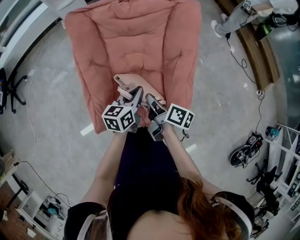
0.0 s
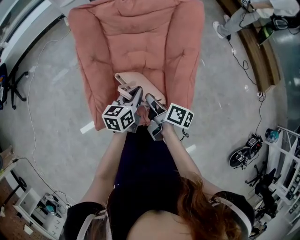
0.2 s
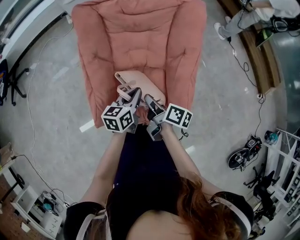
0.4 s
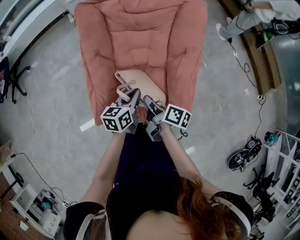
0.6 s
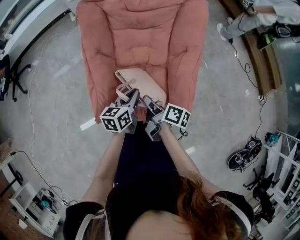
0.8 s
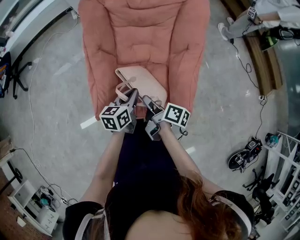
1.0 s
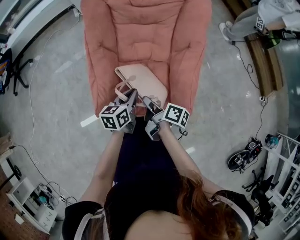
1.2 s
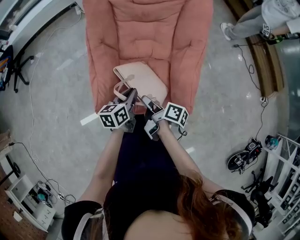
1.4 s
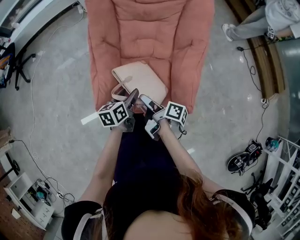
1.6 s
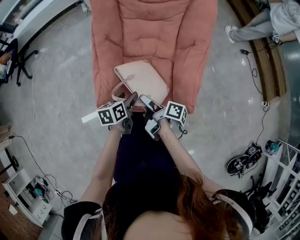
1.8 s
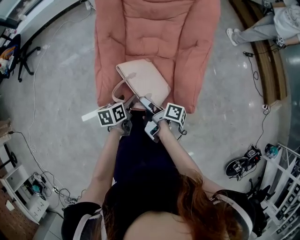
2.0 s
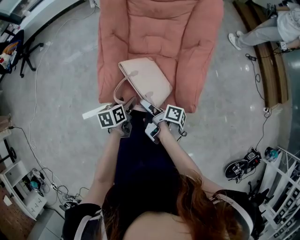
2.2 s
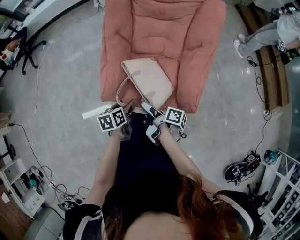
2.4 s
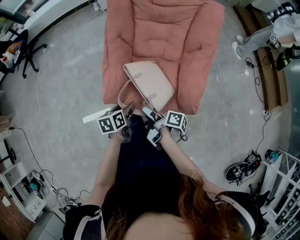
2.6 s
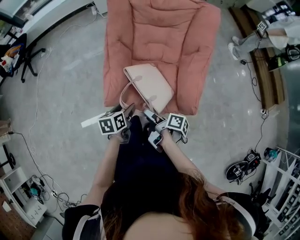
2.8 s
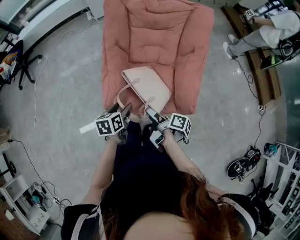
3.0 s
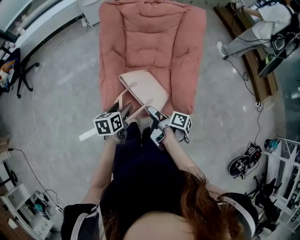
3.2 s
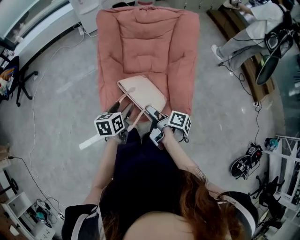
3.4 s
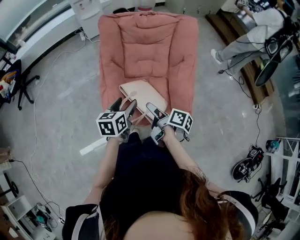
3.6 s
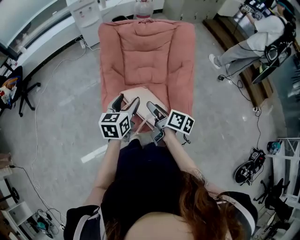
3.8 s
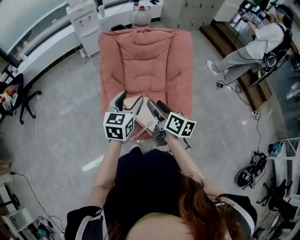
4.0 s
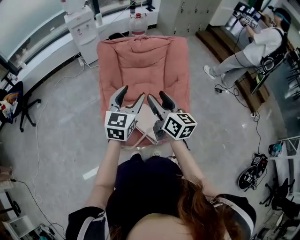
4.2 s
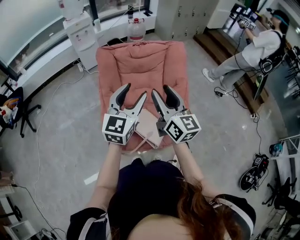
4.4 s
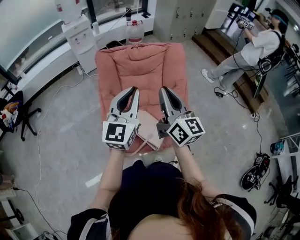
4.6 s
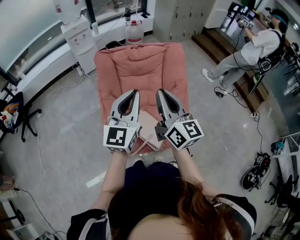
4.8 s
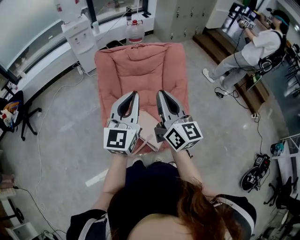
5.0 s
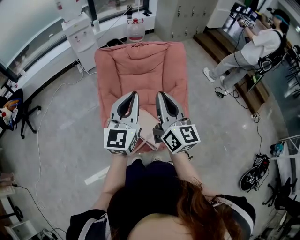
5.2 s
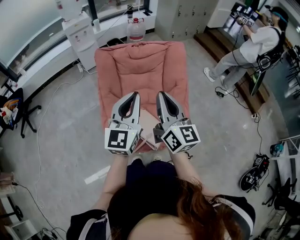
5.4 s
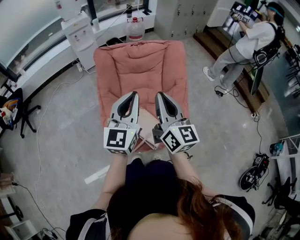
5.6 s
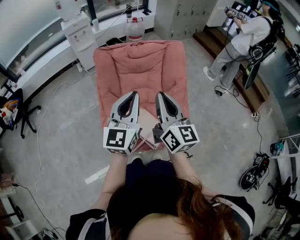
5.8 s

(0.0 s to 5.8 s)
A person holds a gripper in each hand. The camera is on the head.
0.0 s - 1.4 s: The right gripper travels backward by roughly 10 cm. Meanwhile the left gripper heads backward and to the left, covering roughly 10 cm.
1.4 s - 2.8 s: The right gripper goes roughly 10 cm backward and to the left, and opens. Meanwhile the left gripper travels to the left and backward by some 15 cm, and opens its fingers.
2.8 s - 4.4 s: The left gripper heads upward, covering roughly 35 cm, and points its fingers about 50 degrees further upward. Meanwhile the right gripper moves upward and forward, roughly 35 cm, and rotates around the line of its fingers by about 80 degrees, counterclockwise from behind.
4.4 s - 5.8 s: The right gripper closes its fingers, while the left gripper closes up.

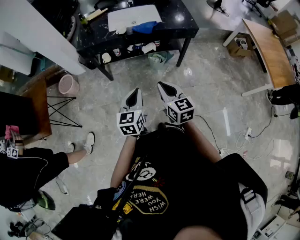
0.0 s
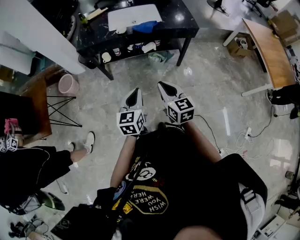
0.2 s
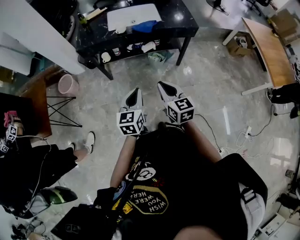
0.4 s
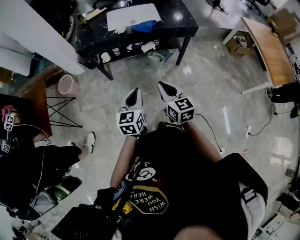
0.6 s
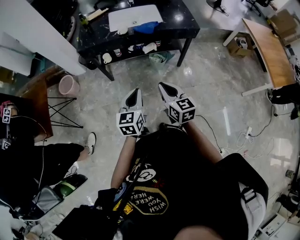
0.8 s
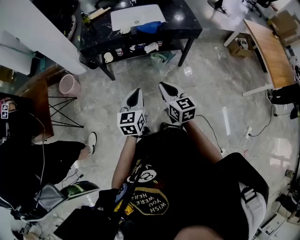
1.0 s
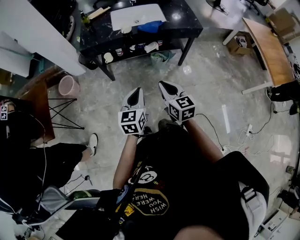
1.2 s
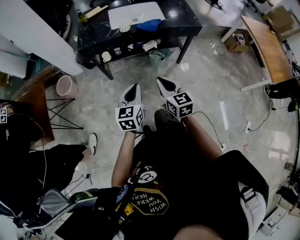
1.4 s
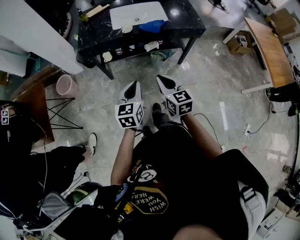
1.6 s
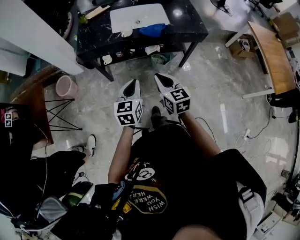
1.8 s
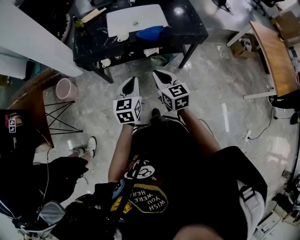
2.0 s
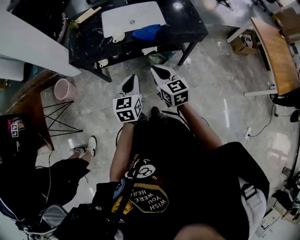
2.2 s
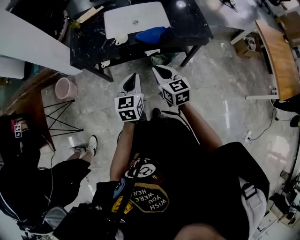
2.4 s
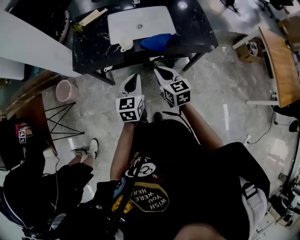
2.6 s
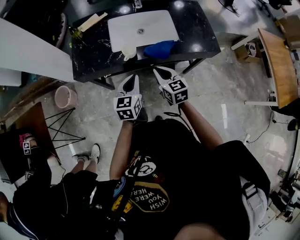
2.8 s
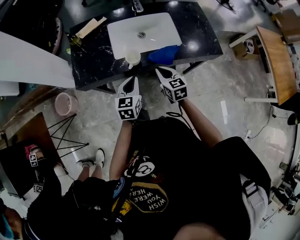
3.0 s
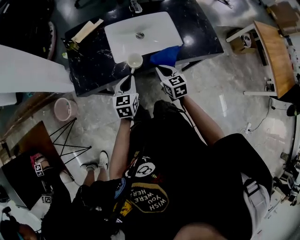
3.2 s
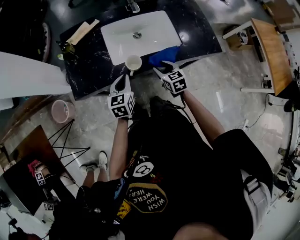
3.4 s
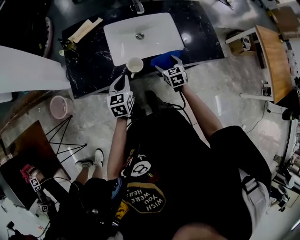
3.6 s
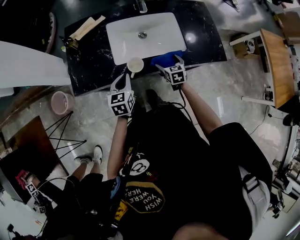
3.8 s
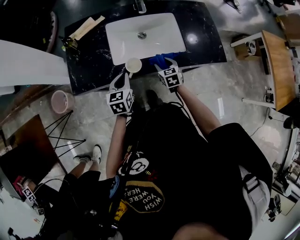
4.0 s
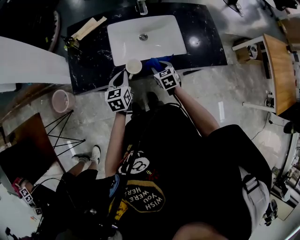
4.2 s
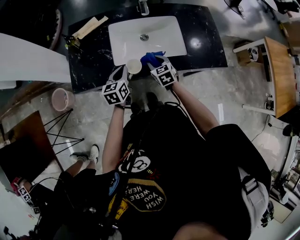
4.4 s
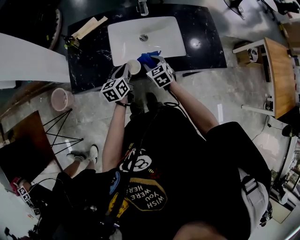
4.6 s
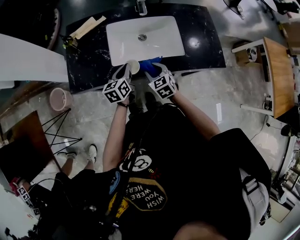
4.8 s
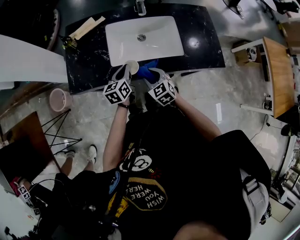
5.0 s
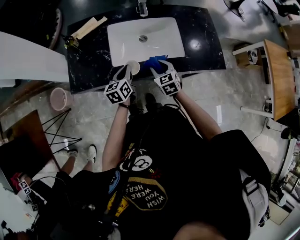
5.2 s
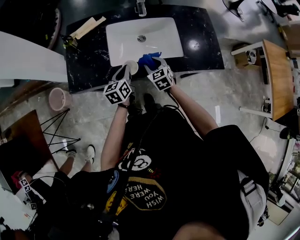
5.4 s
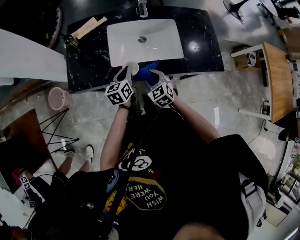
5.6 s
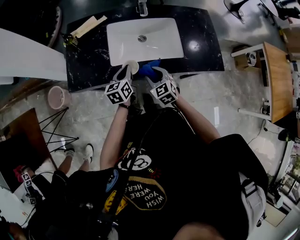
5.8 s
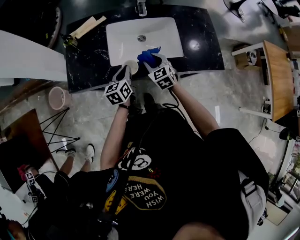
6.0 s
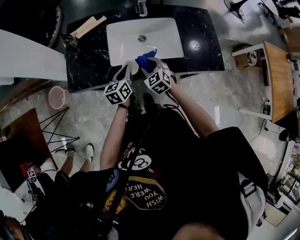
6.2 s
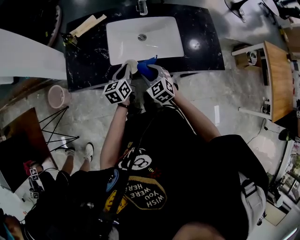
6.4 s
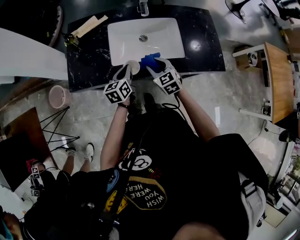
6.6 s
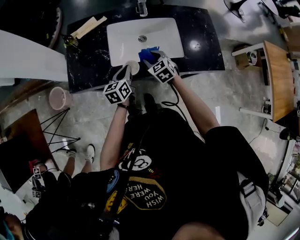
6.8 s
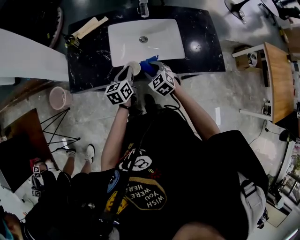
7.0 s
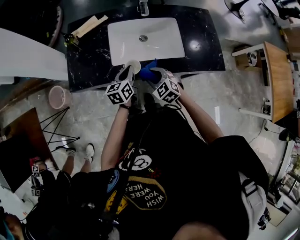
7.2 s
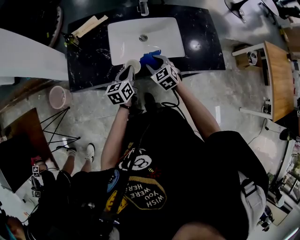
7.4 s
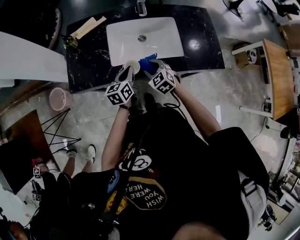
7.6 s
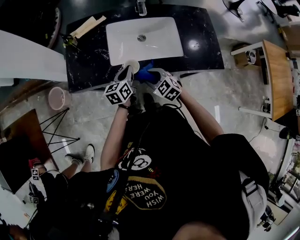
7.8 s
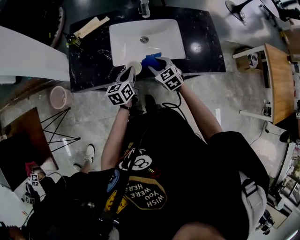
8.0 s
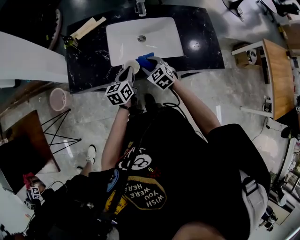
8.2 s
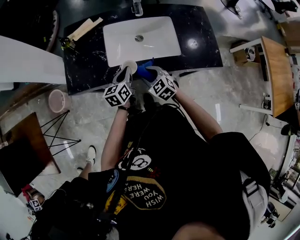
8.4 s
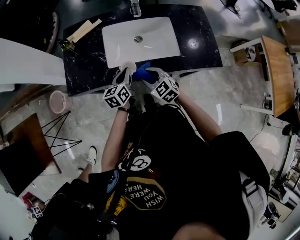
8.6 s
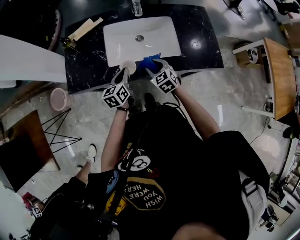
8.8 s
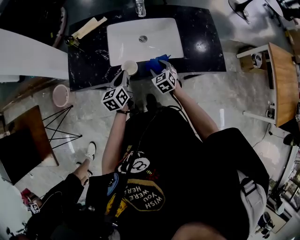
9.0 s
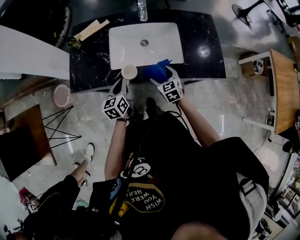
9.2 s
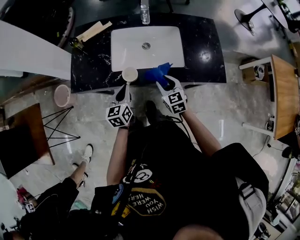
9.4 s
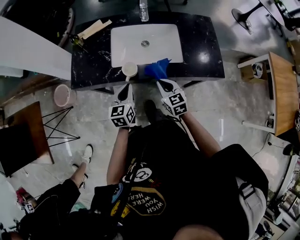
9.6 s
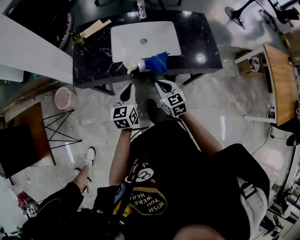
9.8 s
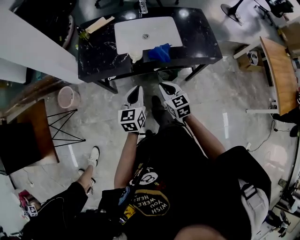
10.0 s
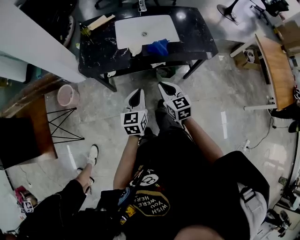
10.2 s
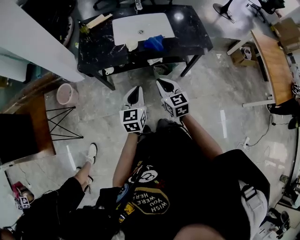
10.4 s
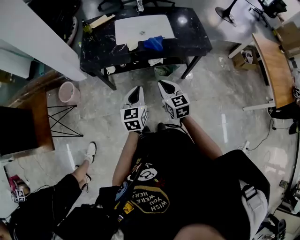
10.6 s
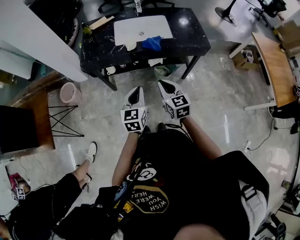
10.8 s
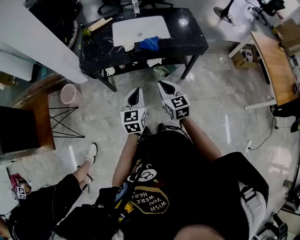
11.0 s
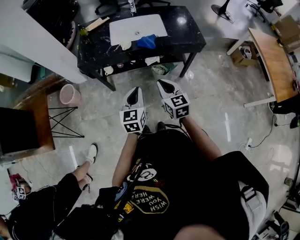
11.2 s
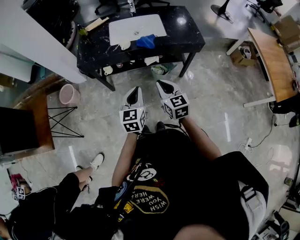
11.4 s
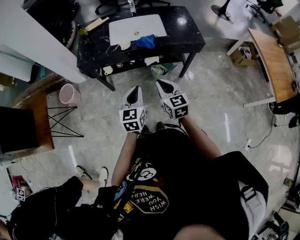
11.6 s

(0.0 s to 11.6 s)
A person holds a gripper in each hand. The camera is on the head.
0.0 s - 1.4 s: The right gripper shifts some 5 cm to the left. Meanwhile the left gripper travels to the left and forward by some 10 cm.
1.4 s - 2.8 s: Both grippers travel together forward, roughly 35 cm.
2.8 s - 4.4 s: Both grippers travel together forward and downward, about 20 cm. The right gripper opens, then closes again.
4.4 s - 5.8 s: The right gripper swings forward and backward, roughly 5 cm each way, with 2 reversals.
5.8 s - 7.2 s: The right gripper swings forward and backward, roughly 10 cm each way, with 3 reversals.
7.2 s - 8.8 s: The right gripper goes forward and backward, approximately 5 cm each way, reversing 4 times.
8.8 s - 10.2 s: The left gripper travels backward by roughly 30 cm, and turns by approximately 20 degrees, while the right gripper travels backward and upward by approximately 30 cm, turns by some 30 degrees, and closes up.
10.2 s - 11.6 s: The grippers both shift backward and to the right by about 10 cm.

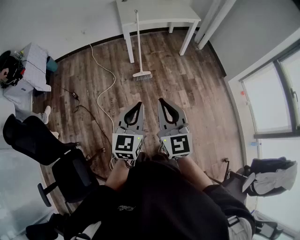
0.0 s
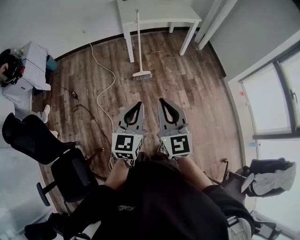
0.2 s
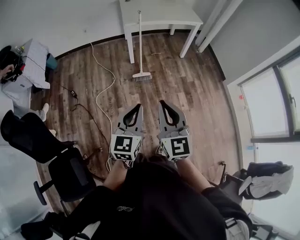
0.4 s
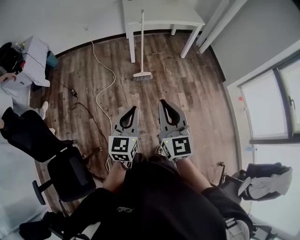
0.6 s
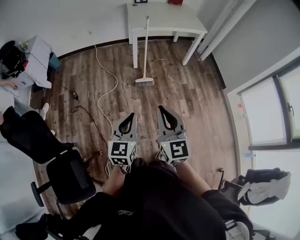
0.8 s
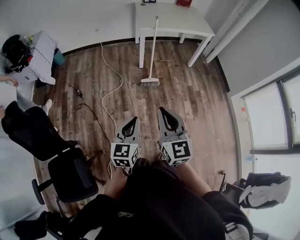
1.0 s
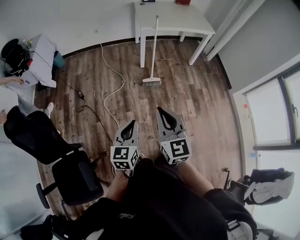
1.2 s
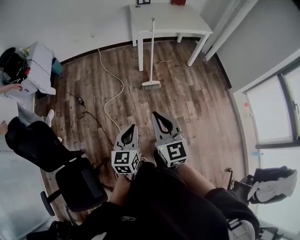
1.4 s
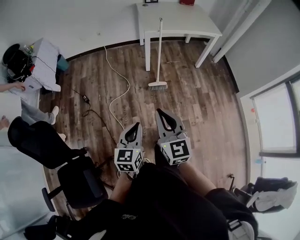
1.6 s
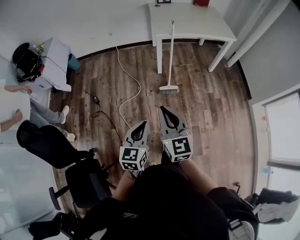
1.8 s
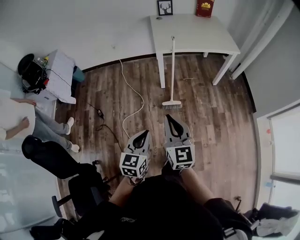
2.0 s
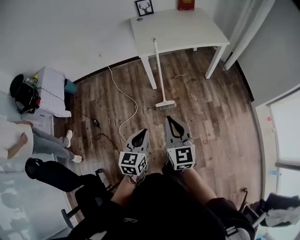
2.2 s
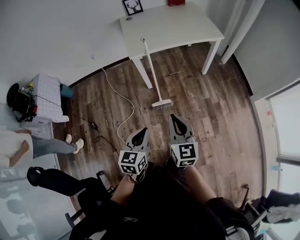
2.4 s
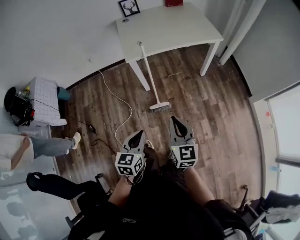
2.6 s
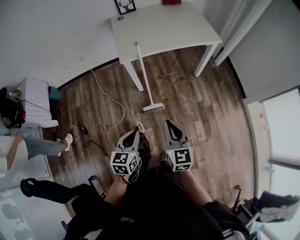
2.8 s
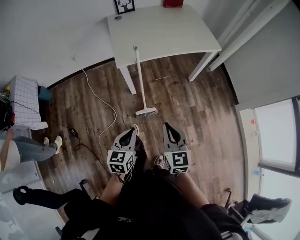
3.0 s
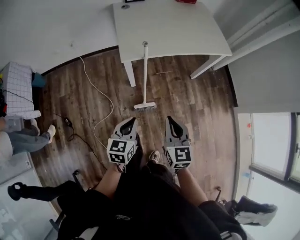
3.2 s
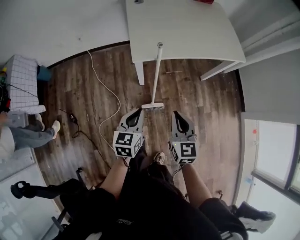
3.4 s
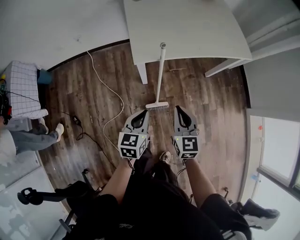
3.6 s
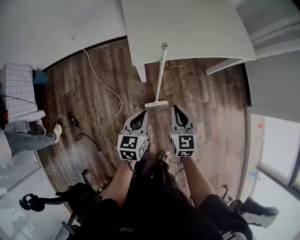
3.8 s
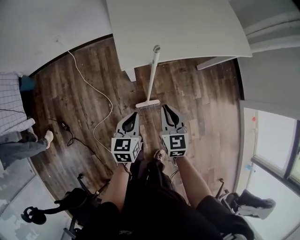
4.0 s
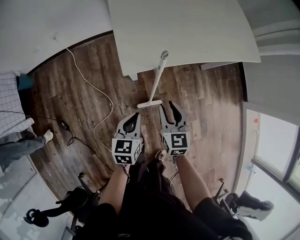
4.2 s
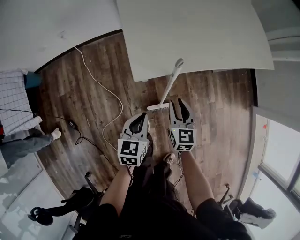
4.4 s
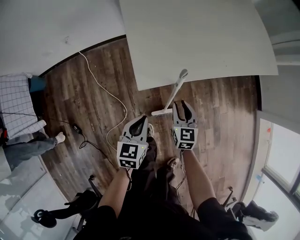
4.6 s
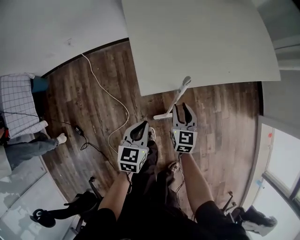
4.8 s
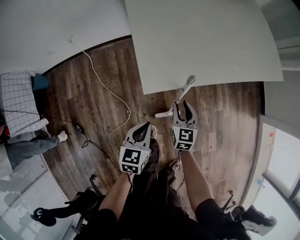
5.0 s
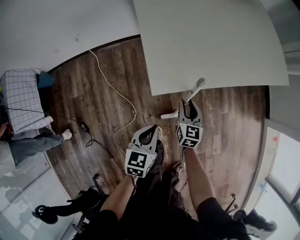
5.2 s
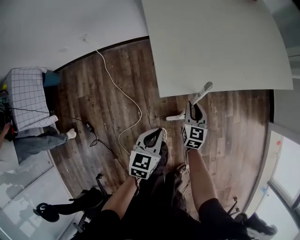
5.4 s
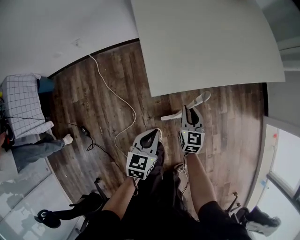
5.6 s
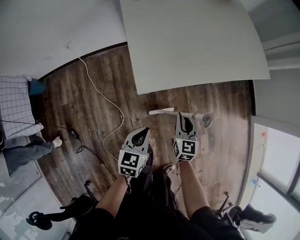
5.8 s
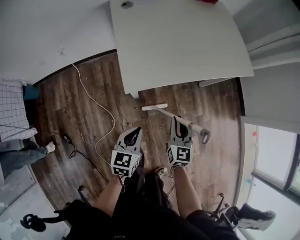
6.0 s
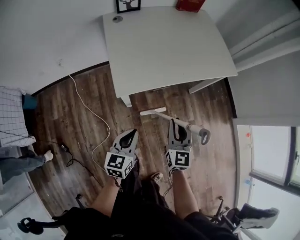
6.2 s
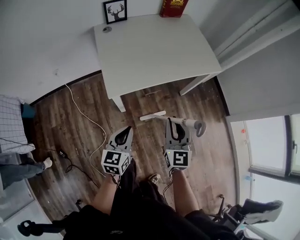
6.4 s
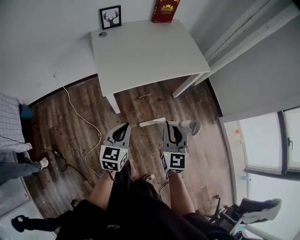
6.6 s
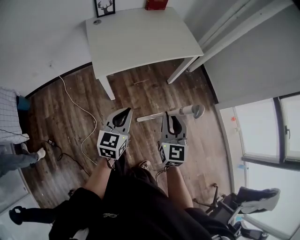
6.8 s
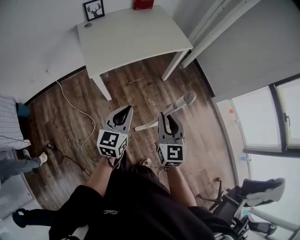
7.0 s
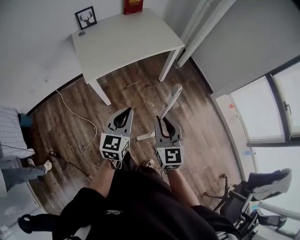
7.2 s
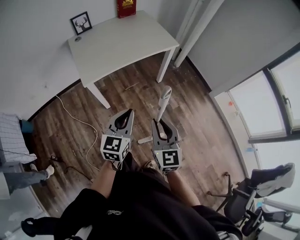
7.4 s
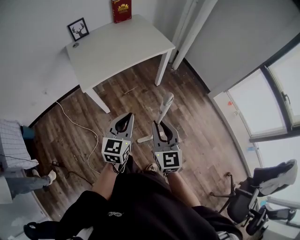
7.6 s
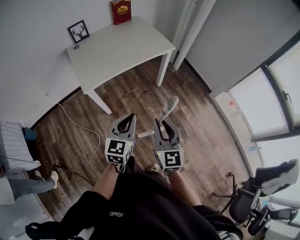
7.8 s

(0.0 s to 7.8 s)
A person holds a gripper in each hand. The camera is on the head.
0.0 s - 1.6 s: The right gripper moves to the left, forward and downward, approximately 15 cm, while the left gripper is displaced to the left and downward by approximately 15 cm.
1.6 s - 3.2 s: The pair of grippers is taken forward, roughly 50 cm. The right gripper swivels about 20 degrees.
3.2 s - 4.6 s: The left gripper goes approximately 25 cm forward, downward and to the left; the right gripper heads downward and forward, covering some 35 cm, and opens up.
4.6 s - 6.2 s: The right gripper is displaced upward and to the right by some 20 cm, and swivels some 20 degrees, while the left gripper travels upward and to the right by about 15 cm.
6.2 s - 7.8 s: The left gripper travels to the right, upward and backward by roughly 30 cm, and changes its angle by approximately 20 degrees. The right gripper goes about 30 cm backward, to the right and upward.
